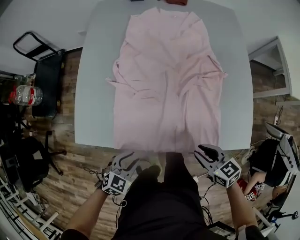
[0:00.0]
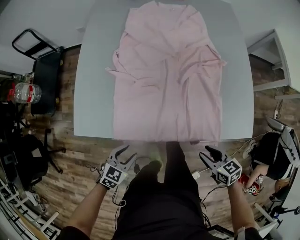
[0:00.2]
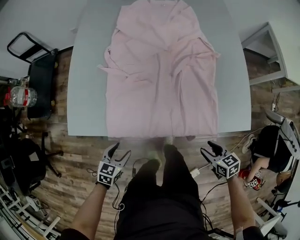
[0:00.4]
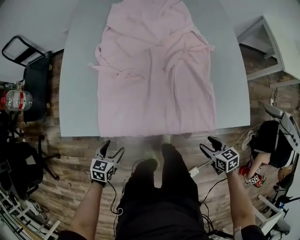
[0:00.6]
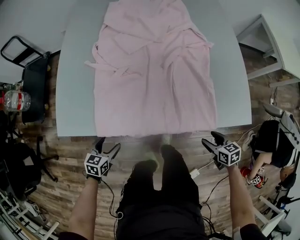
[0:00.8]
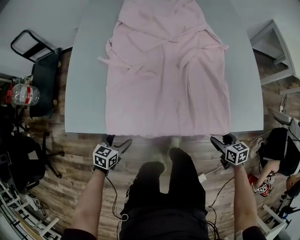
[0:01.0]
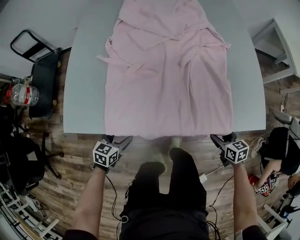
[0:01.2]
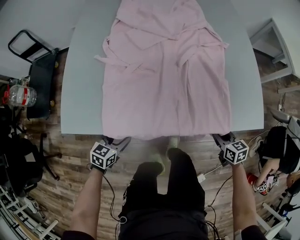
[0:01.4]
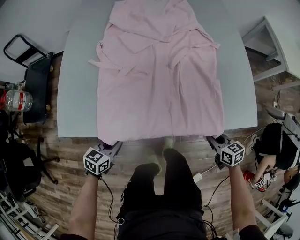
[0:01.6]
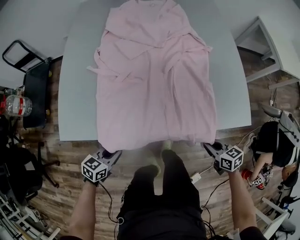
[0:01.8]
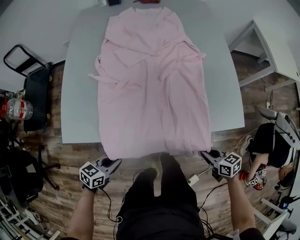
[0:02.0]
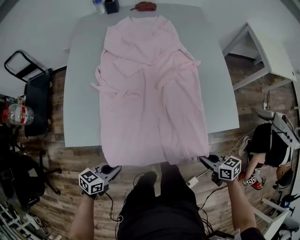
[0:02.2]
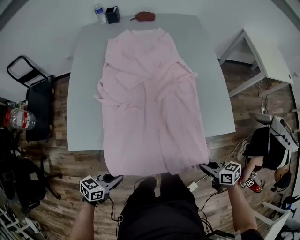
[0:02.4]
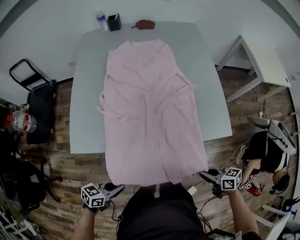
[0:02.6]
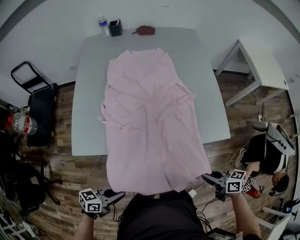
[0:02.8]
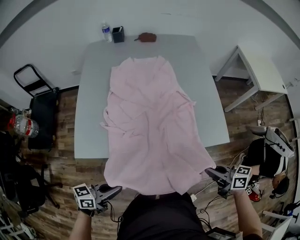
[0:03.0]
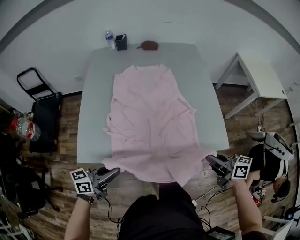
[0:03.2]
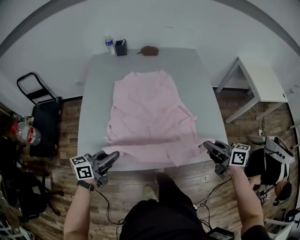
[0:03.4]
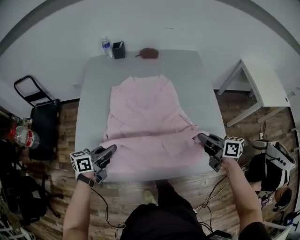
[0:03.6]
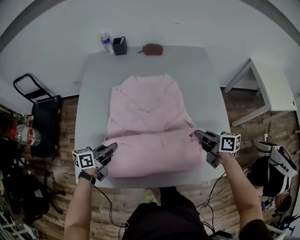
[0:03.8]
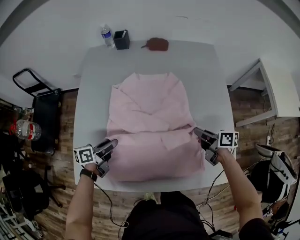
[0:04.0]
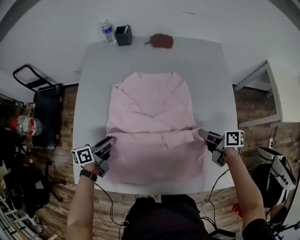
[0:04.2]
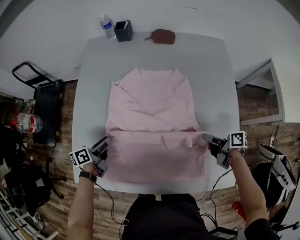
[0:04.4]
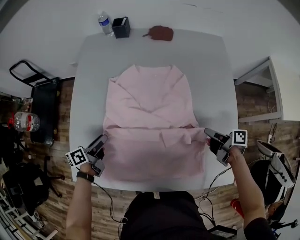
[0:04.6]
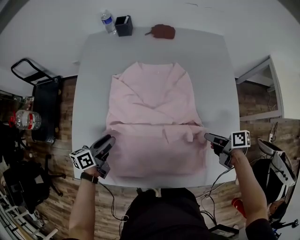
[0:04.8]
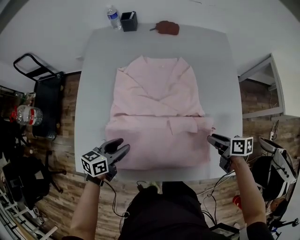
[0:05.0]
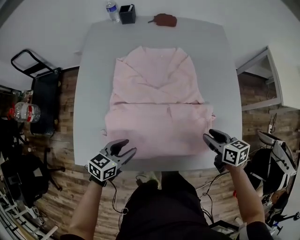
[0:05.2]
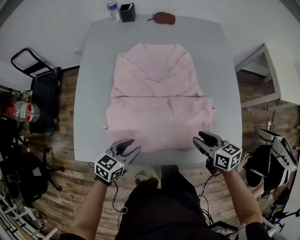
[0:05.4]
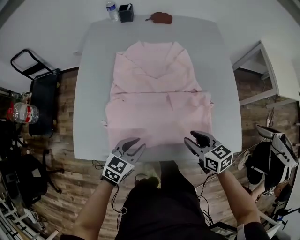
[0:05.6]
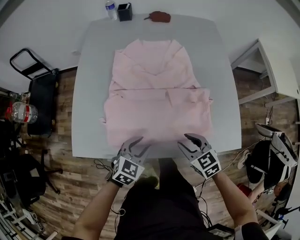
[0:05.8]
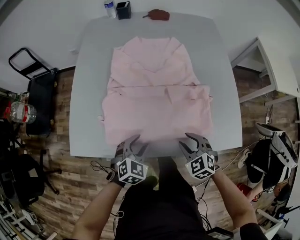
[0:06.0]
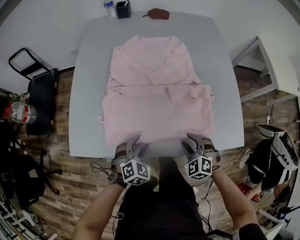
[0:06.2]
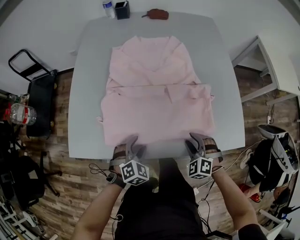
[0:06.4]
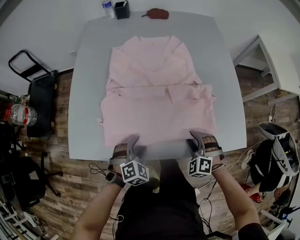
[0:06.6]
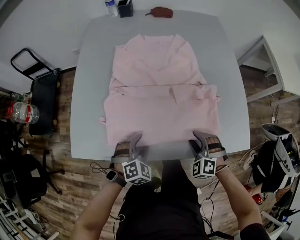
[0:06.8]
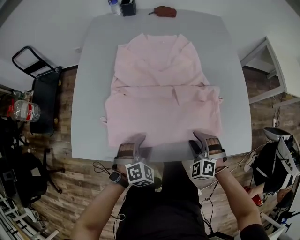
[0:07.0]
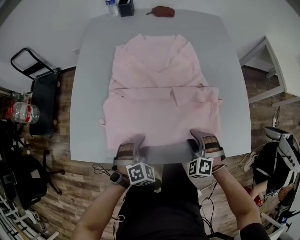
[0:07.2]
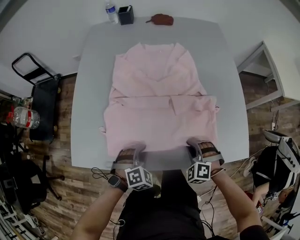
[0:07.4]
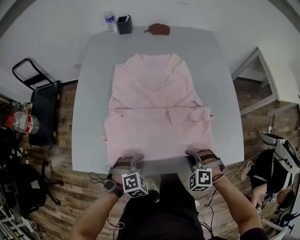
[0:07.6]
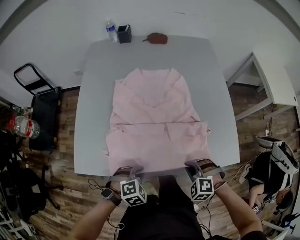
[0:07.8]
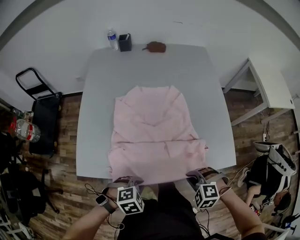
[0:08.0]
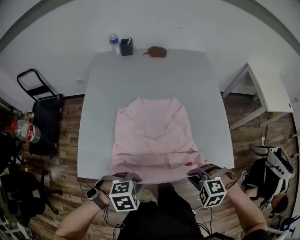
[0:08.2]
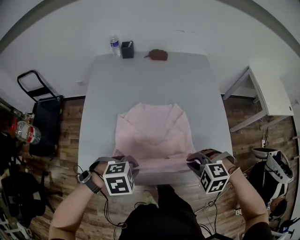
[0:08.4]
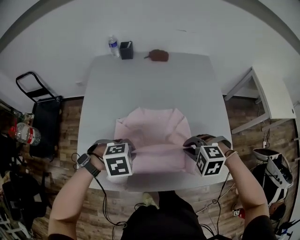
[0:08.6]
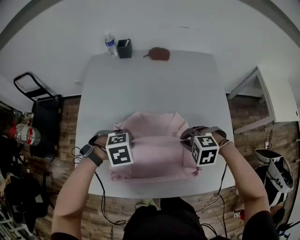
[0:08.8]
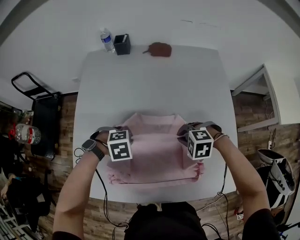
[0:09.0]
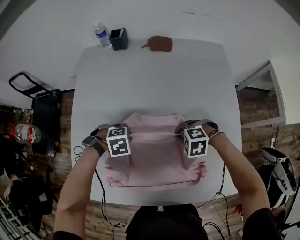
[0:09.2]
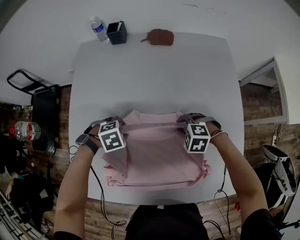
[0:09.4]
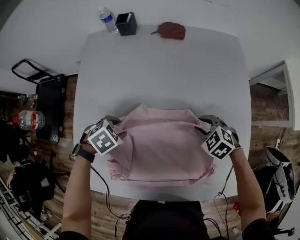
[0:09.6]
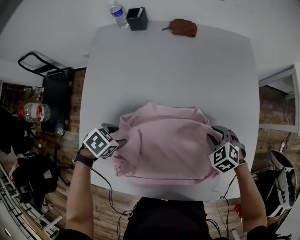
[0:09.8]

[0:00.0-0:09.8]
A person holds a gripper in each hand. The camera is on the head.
0:00.0 to 0:01.4: The right gripper heads downward and to the right, covering roughly 20 cm, swivels roughly 20 degrees, and opens, then closes once more; the left gripper heads downward, covering approximately 15 cm, swivels roughly 20 degrees, and opens.
0:01.4 to 0:02.8: Both grippers travel together upward, roughly 20 cm. The left gripper turns by some 40 degrees, and closes its fingers. The right gripper changes its angle by roughly 30 degrees.
0:02.8 to 0:04.2: The pair of grippers is taken approximately 50 cm. The left gripper rotates about 40 degrees, and opens. Meanwhile the right gripper rotates approximately 20 degrees, and opens.
0:04.2 to 0:05.6: The right gripper is displaced backward and to the left by some 20 cm, and rotates around the line of its fingers by roughly 40 degrees, counterclockwise from behind. Meanwhile the left gripper travels backward and to the right by some 20 cm, and rolls clockwise, seen from behind, by roughly 50 degrees.
0:05.6 to 0:07.0: Both grippers travel together downward, about 10 cm. The right gripper rolls counterclockwise, seen from behind, by about 60 degrees. Meanwhile the left gripper rotates some 50 degrees, and opens.
0:07.0 to 0:08.4: The grippers both shift upward by approximately 15 cm. The right gripper rotates some 30 degrees, and closes its fingers, while the left gripper changes its angle by about 40 degrees, and closes up.
0:08.4 to 0:09.8: The right gripper changes place by some 30 cm, changes its angle by approximately 30 degrees, and opens; the left gripper changes place by roughly 25 cm, rolls counterclockwise, seen from behind, by some 40 degrees, and opens up.

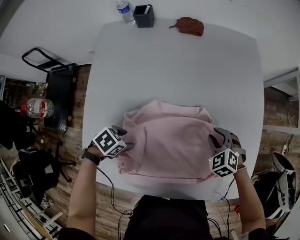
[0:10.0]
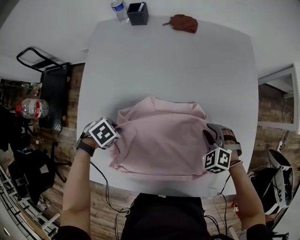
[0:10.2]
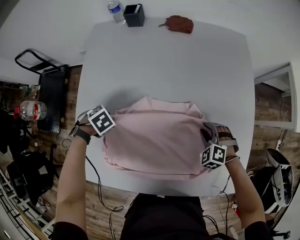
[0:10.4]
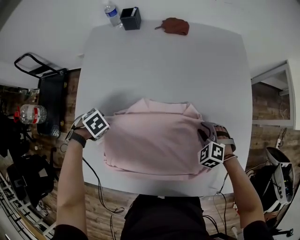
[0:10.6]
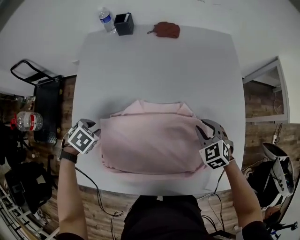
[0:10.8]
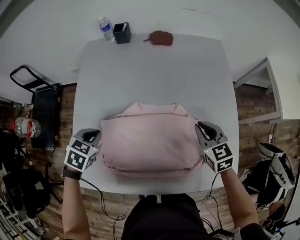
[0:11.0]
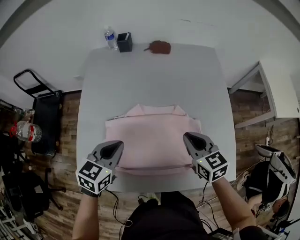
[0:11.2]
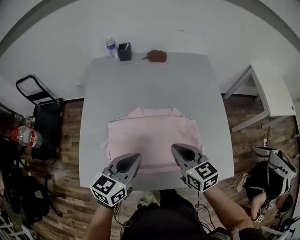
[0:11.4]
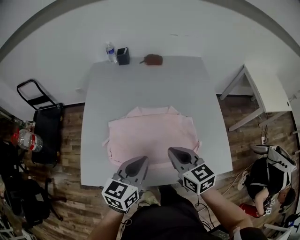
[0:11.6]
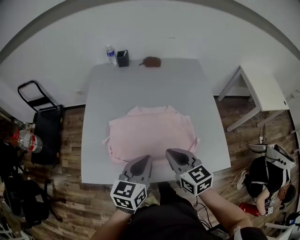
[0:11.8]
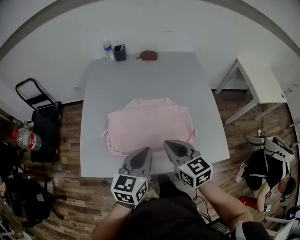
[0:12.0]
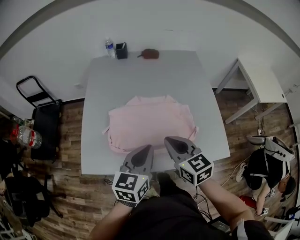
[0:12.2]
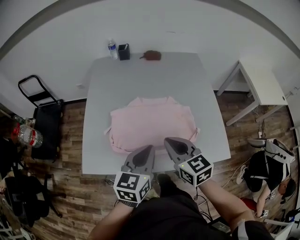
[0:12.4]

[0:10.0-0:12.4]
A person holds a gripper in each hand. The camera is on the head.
0:10.0 to 0:11.2: Both grippers move upward, some 20 cm. The right gripper rolls clockwise, seen from behind, by roughly 40 degrees, and closes its fingers. Meanwhile the left gripper points its fingers about 30 degrees further upward, and closes up.
0:11.2 to 0:12.4: The left gripper travels backward, to the right and upward by approximately 20 cm. Meanwhile the right gripper moves backward, to the left and upward, about 20 cm.

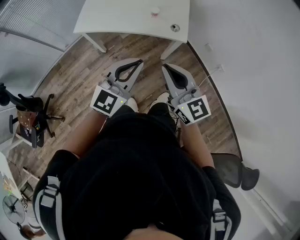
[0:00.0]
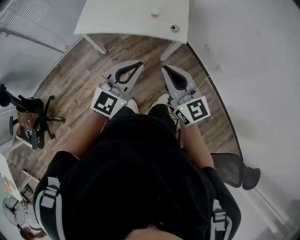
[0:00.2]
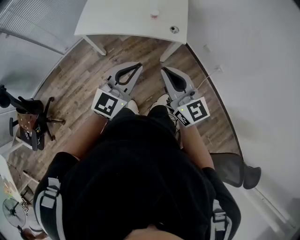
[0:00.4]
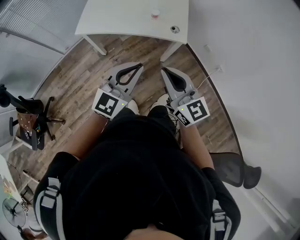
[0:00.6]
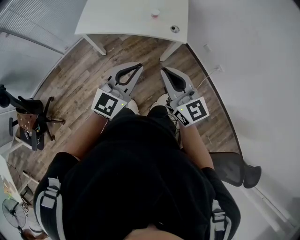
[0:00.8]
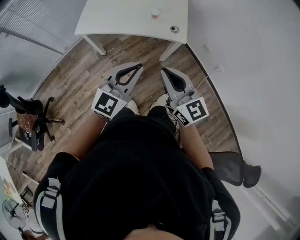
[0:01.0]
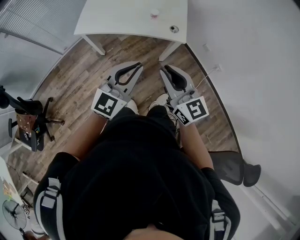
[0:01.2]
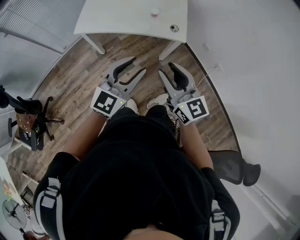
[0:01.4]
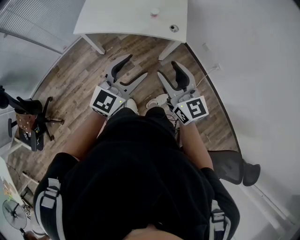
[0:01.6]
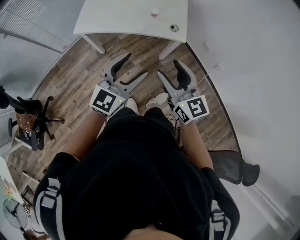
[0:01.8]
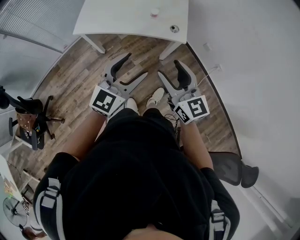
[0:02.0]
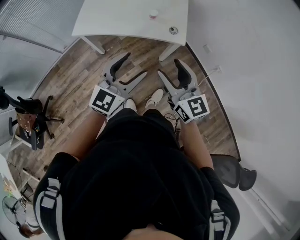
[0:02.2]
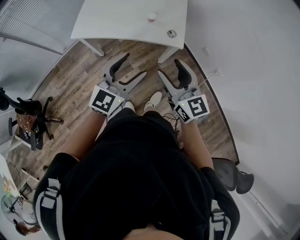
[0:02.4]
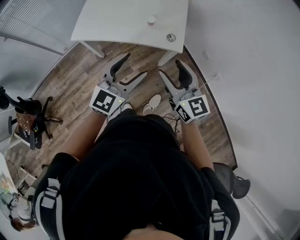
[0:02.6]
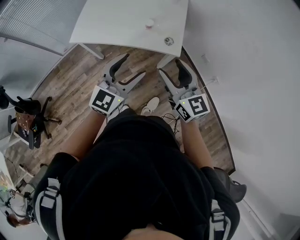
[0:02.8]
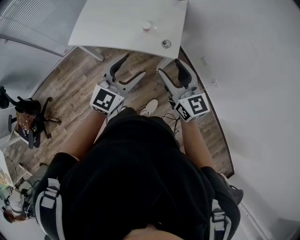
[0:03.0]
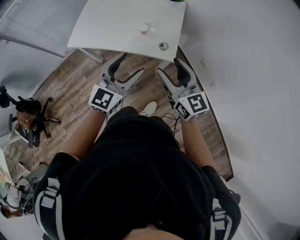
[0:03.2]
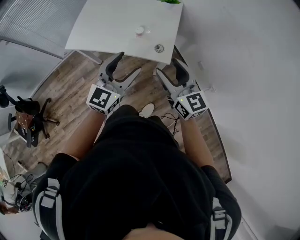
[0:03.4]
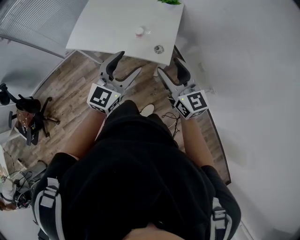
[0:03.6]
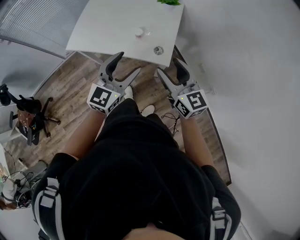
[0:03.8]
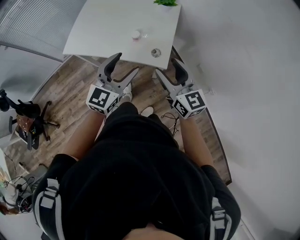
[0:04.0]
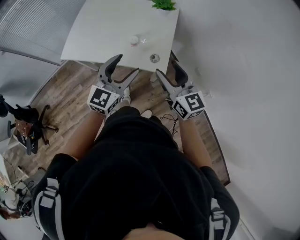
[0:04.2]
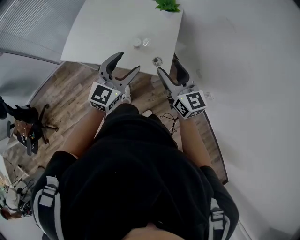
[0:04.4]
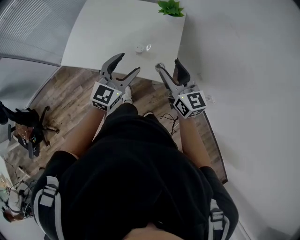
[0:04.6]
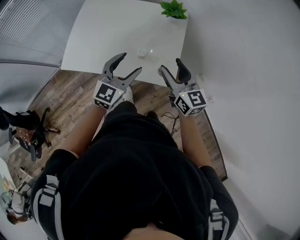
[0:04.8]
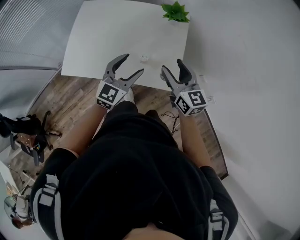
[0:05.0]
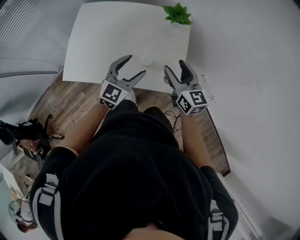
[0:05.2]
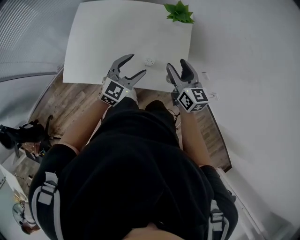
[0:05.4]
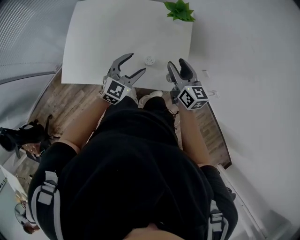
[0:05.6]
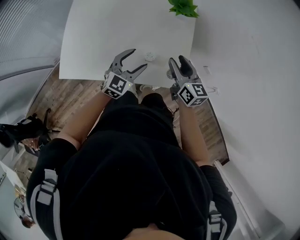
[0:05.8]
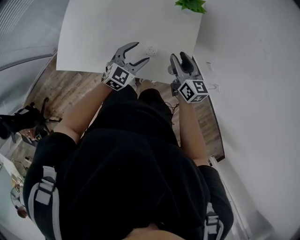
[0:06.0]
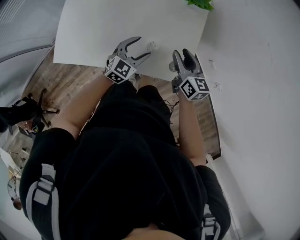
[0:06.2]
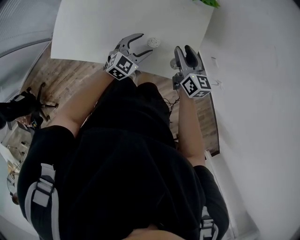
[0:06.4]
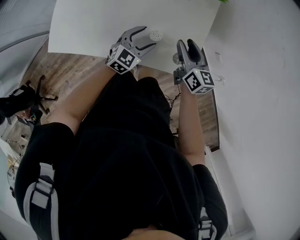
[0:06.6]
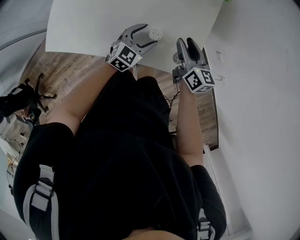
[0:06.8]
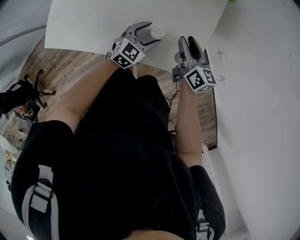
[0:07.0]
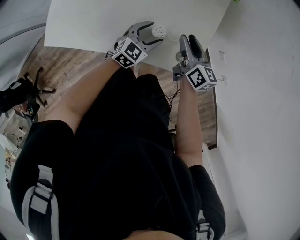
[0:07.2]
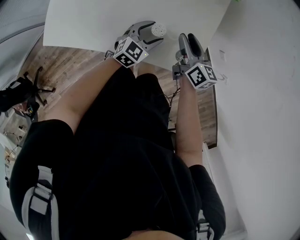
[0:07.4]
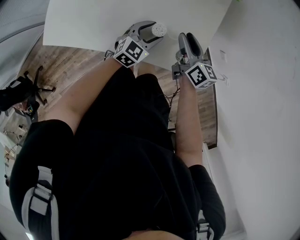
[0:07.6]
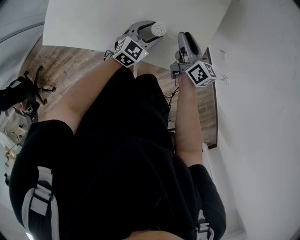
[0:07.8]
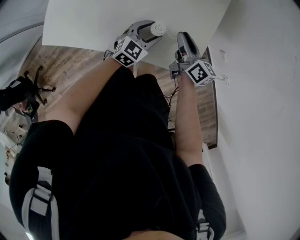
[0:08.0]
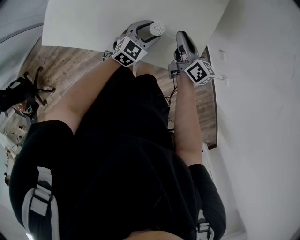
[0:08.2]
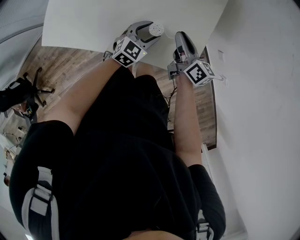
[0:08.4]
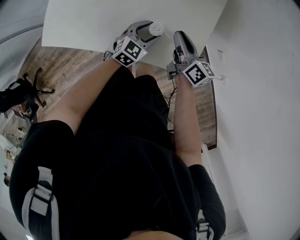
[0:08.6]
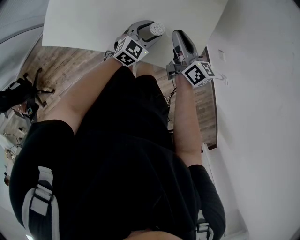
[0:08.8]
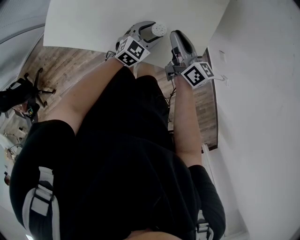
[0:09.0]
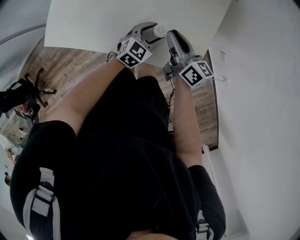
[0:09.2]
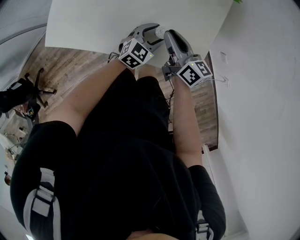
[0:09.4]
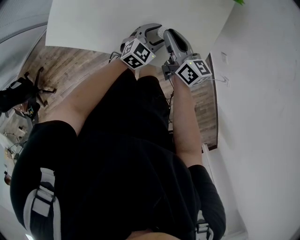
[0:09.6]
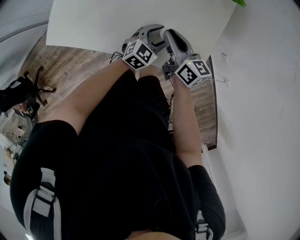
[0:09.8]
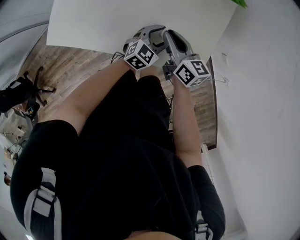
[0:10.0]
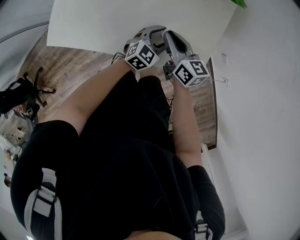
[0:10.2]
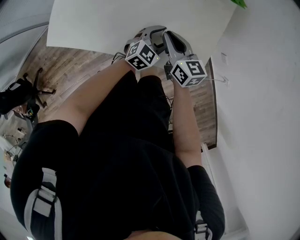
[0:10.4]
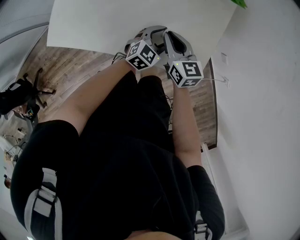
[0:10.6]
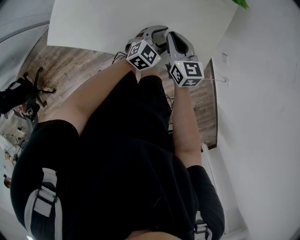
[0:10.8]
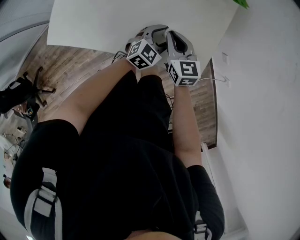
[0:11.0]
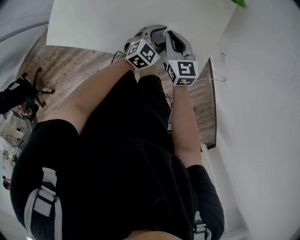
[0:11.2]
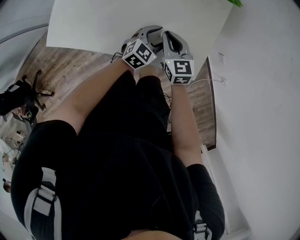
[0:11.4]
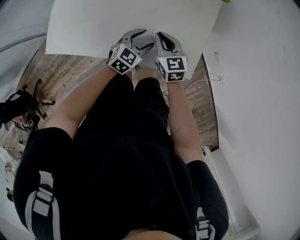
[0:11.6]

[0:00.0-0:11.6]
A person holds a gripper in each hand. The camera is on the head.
0:00.0 to 0:01.4: The left gripper opens, while the right gripper opens its fingers.
0:01.4 to 0:02.8: The grippers both shift forward and to the right by about 15 cm. The right gripper opens up. Meanwhile the left gripper opens.
0:02.8 to 0:04.4: The right gripper travels forward and to the right by about 20 cm, while the left gripper shifts approximately 15 cm forward.
0:04.4 to 0:05.8: The right gripper shifts some 25 cm forward and downward, and turns by approximately 20 degrees, while the left gripper moves forward, downward and to the left, approximately 25 cm.
0:05.8 to 0:07.2: Both grippers travel together downward, approximately 15 cm.
0:07.2 to 0:08.8: The right gripper closes its fingers.
0:08.8 to 0:10.2: The right gripper goes about 10 cm to the left.
0:10.2 to 0:11.6: The left gripper shifts by about 5 cm, while the right gripper rotates roughly 30 degrees.
